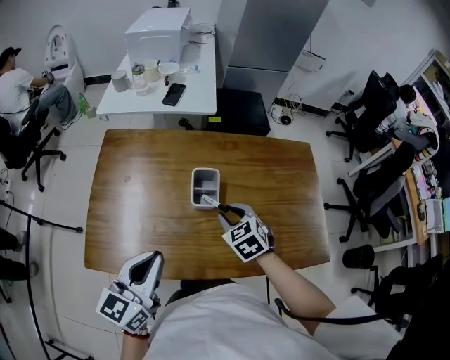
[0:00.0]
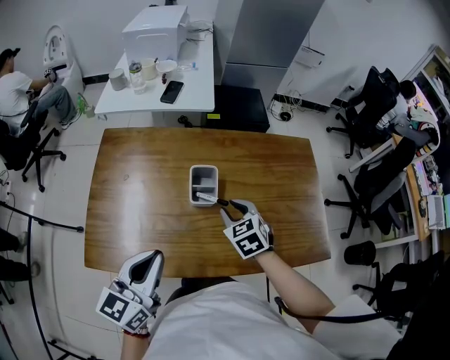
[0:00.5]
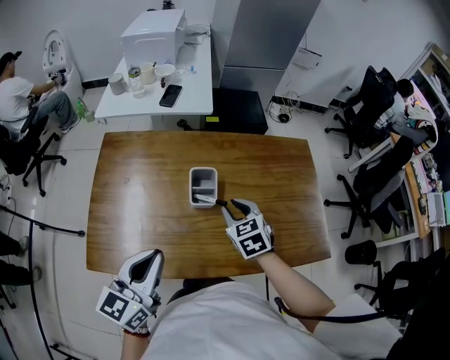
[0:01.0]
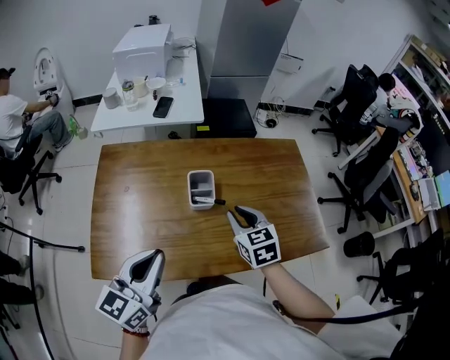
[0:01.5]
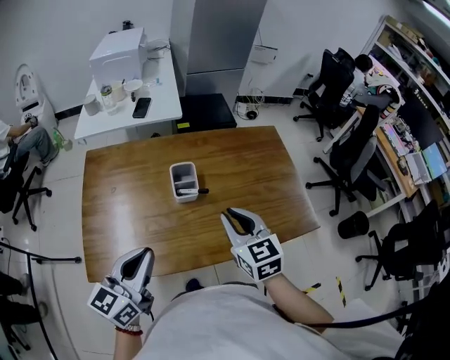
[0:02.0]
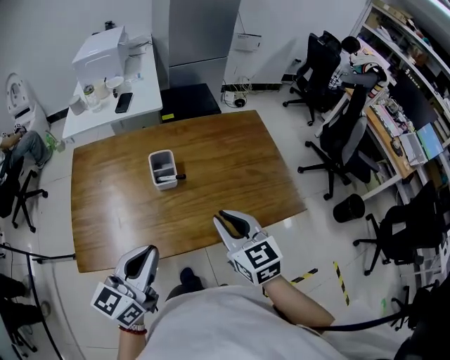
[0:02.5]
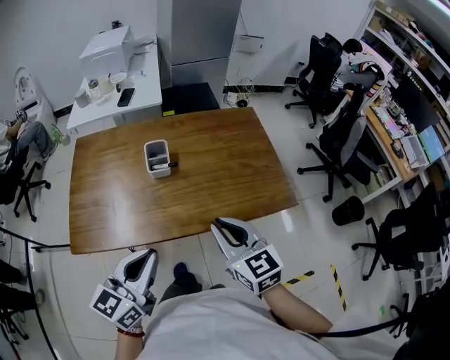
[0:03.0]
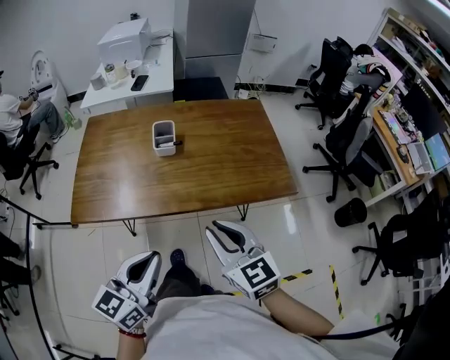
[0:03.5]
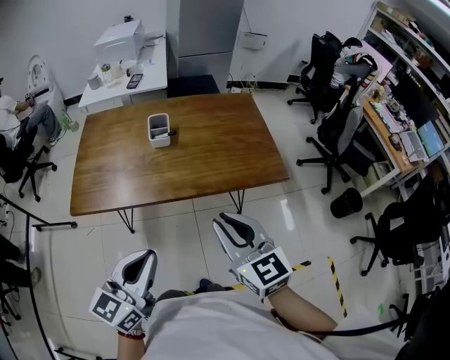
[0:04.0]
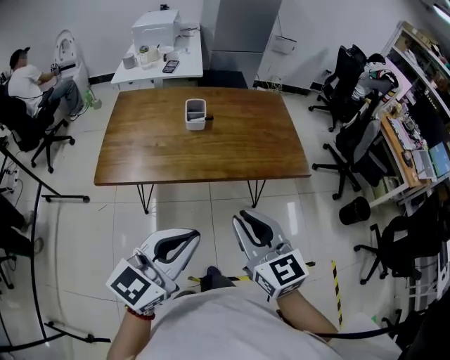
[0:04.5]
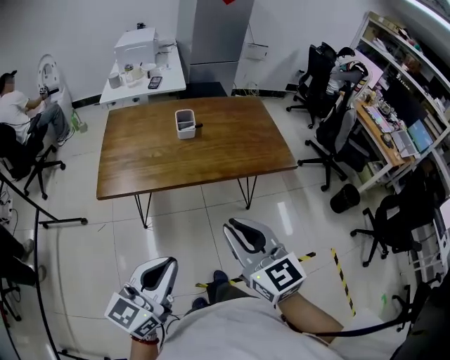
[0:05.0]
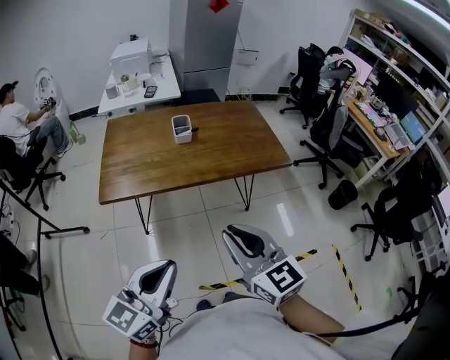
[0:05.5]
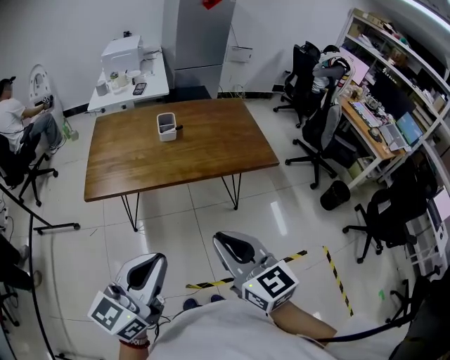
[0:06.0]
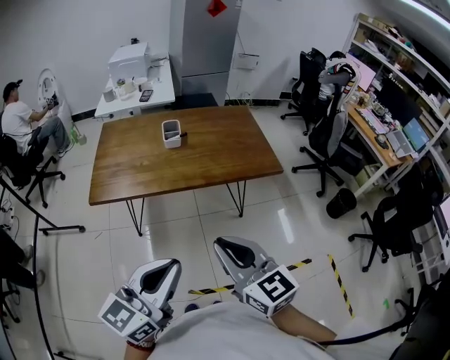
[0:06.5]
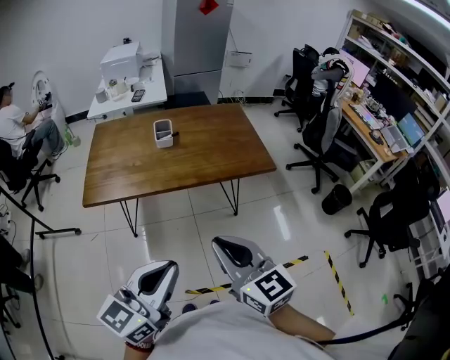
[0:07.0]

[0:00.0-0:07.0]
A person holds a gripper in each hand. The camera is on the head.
0:00.0 to 0:02.0: The right gripper travels upward and backward by about 15 cm, and swivels about 30 degrees.
0:02.0 to 0:03.5: The left gripper is displaced backward and to the right by roughly 25 cm; the right gripper heads backward, covering approximately 25 cm.
0:03.5 to 0:05.0: The right gripper shifts roughly 20 cm backward, upward and to the left, while the left gripper moves backward and to the left, about 20 cm.
0:05.0 to 0:07.0: Both grippers move to the right, about 10 cm.

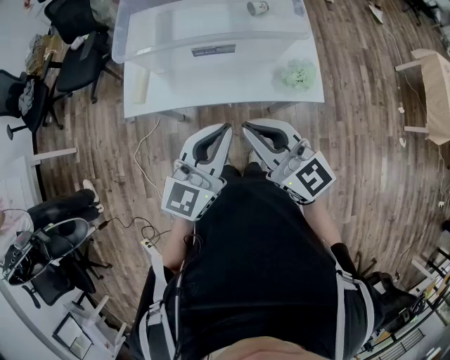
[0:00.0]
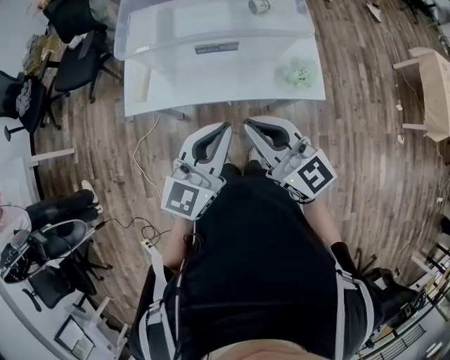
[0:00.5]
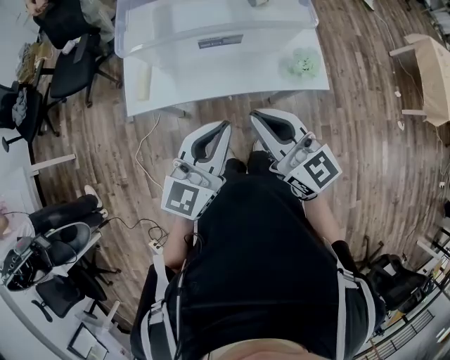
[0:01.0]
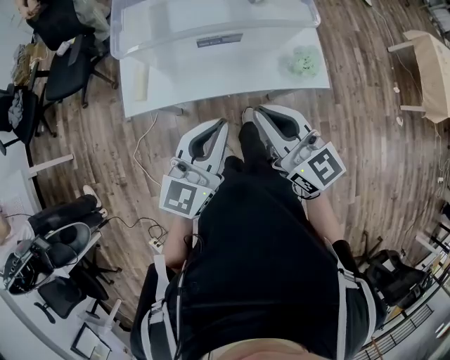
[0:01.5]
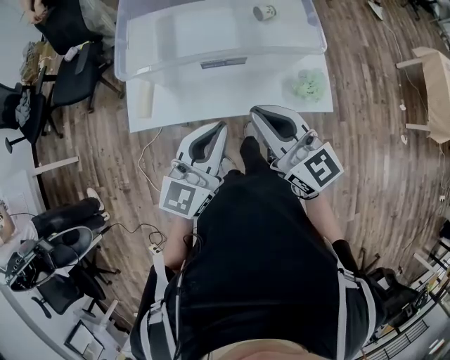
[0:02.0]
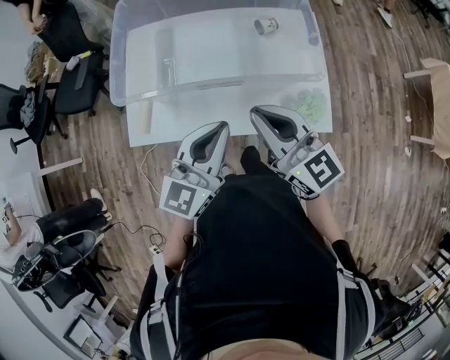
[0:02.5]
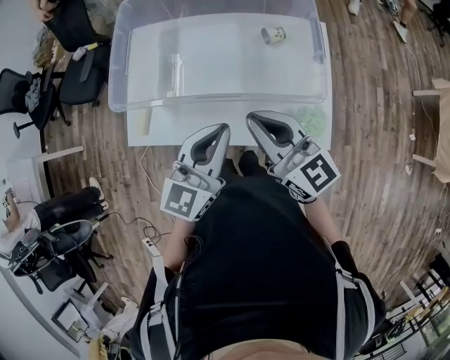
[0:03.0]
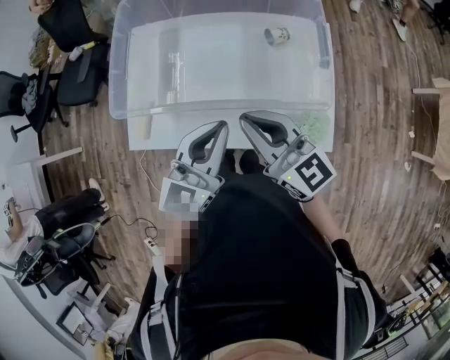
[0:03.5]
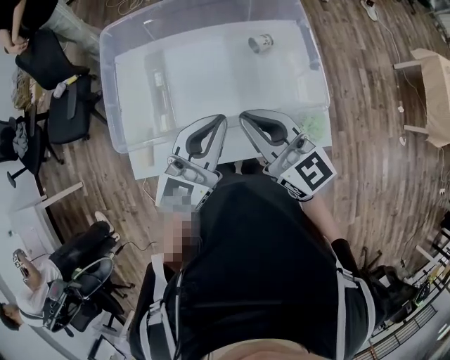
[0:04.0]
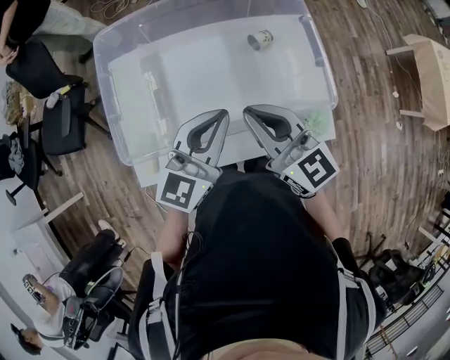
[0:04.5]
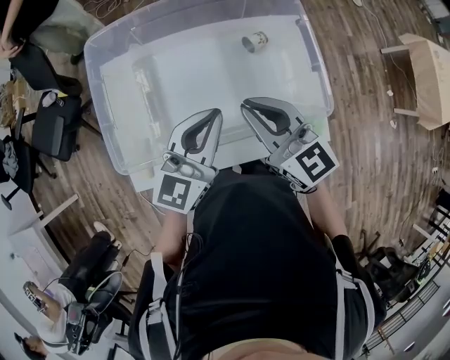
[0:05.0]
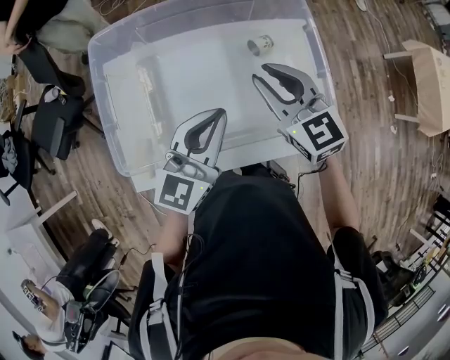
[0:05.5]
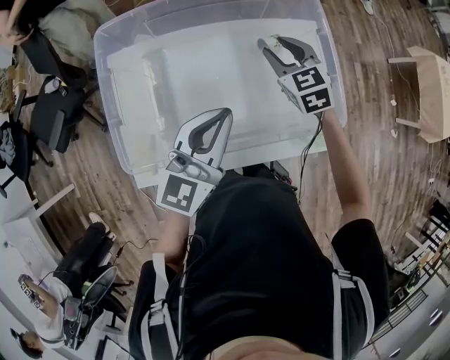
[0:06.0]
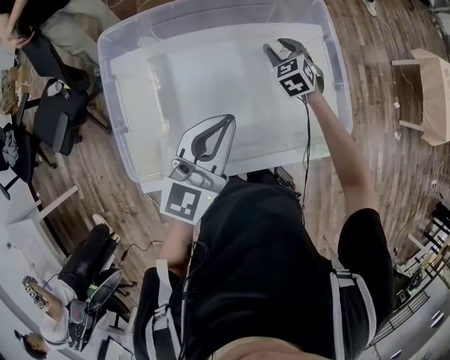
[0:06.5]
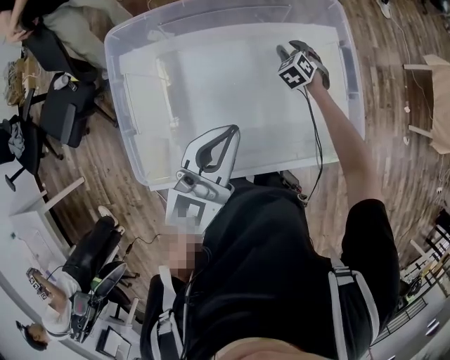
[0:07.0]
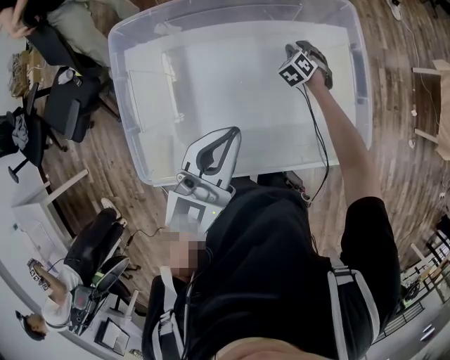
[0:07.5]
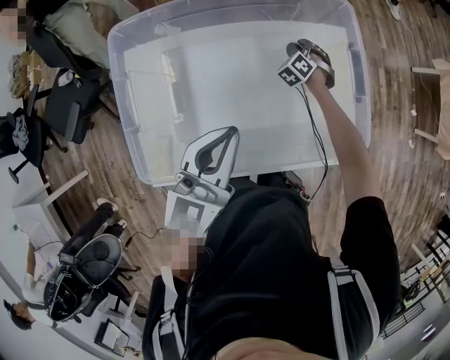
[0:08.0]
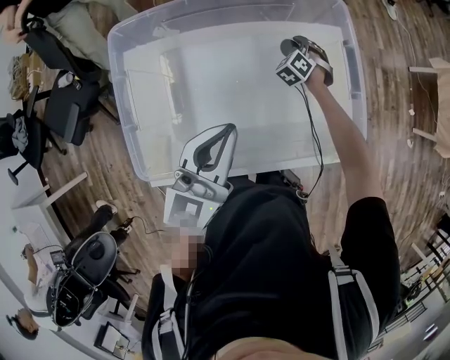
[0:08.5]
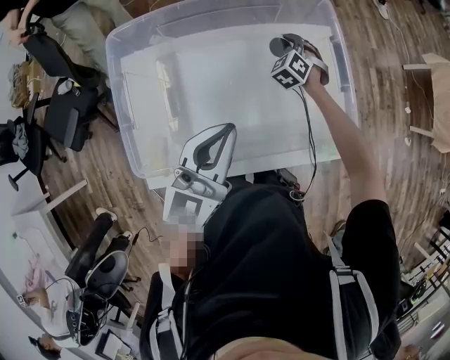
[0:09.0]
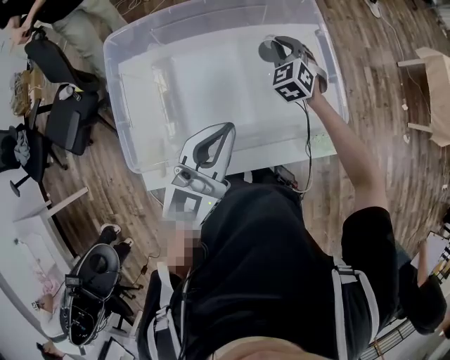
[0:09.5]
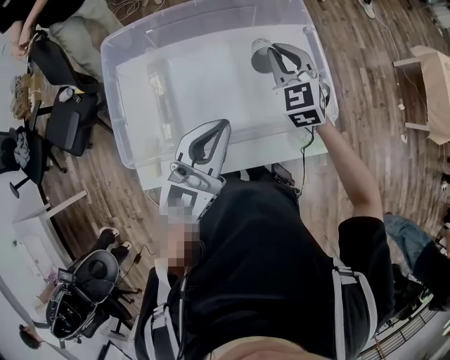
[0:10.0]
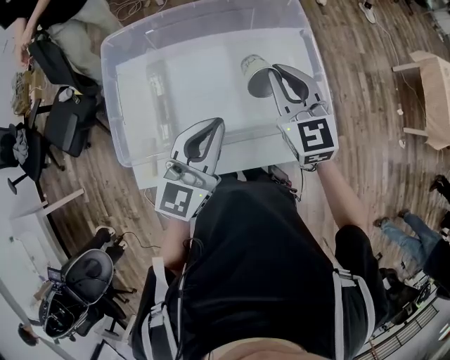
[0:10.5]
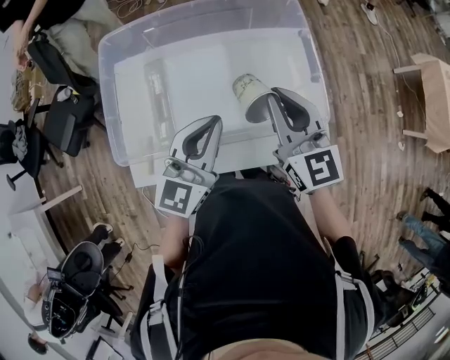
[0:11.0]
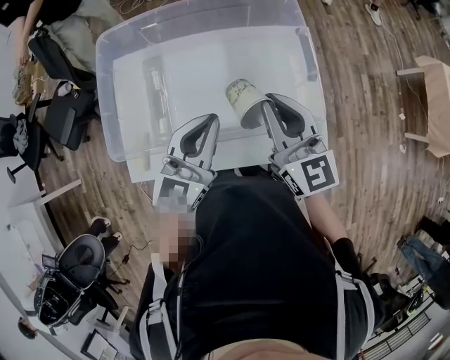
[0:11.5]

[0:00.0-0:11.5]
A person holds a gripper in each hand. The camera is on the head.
0:00.0 to 0:02.0: The two grippers go roughly 10 cm forward.
0:02.0 to 0:04.0: The grippers both shift forward by roughly 20 cm.
0:04.0 to 0:06.0: The right gripper goes approximately 25 cm forward and downward, tips its fingers downward by approximately 30 degrees, and opens its fingers. The left gripper is displaced forward by some 10 cm.
0:06.0 to 0:07.5: The right gripper moves downward and forward, about 25 cm, and swivels about 40 degrees.
0:07.5 to 0:09.5: The right gripper goes roughly 20 cm upward, changes its angle by some 30 degrees, and closes up; the left gripper shifts some 5 cm to the right.
0:09.5 to 0:11.5: The right gripper is displaced backward and upward by some 25 cm, and angles its fingers upward, by roughly 30 degrees.

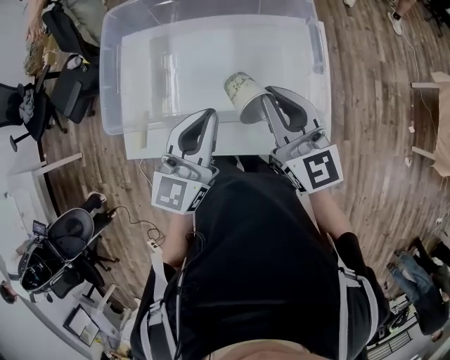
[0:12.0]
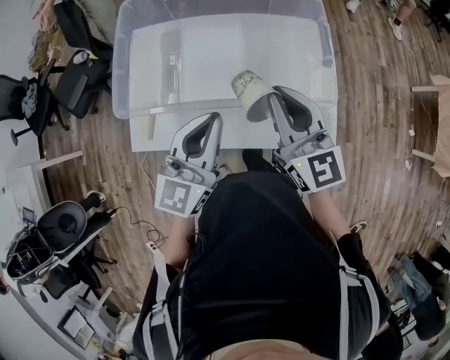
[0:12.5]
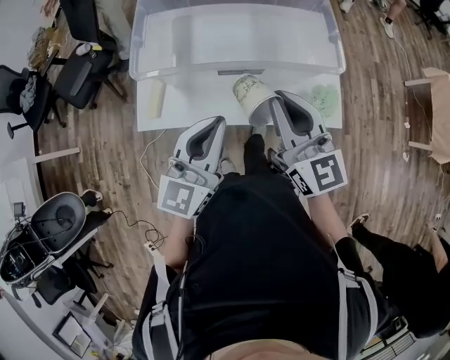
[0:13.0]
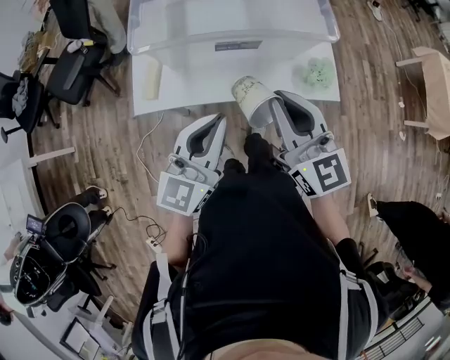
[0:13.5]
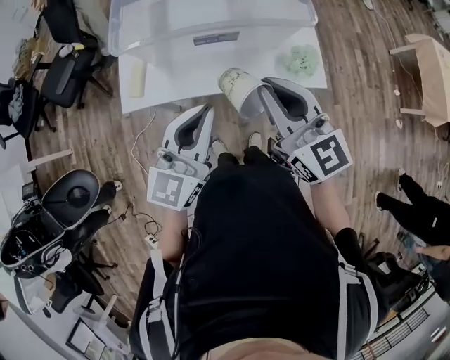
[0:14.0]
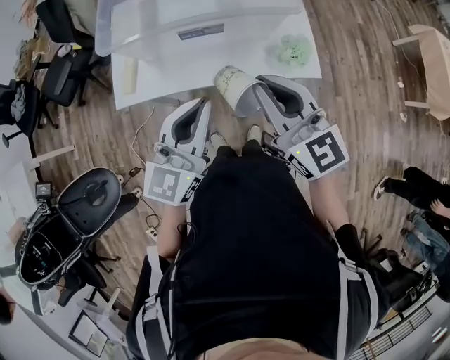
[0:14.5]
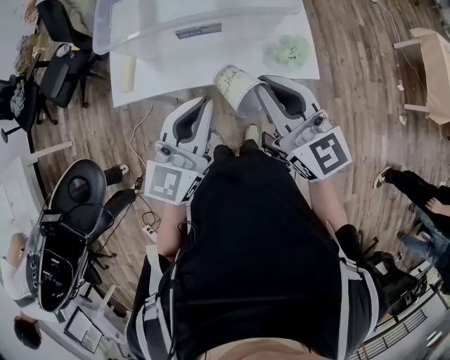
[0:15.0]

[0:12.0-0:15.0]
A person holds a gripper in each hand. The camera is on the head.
0:12.0 to 0:13.5: Both grippers move backward, about 25 cm.
0:13.5 to 0:15.0: The grippers both shift to the right by some 10 cm.

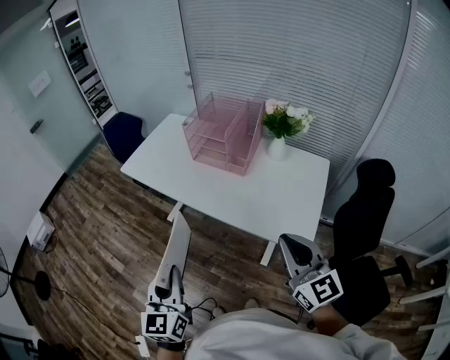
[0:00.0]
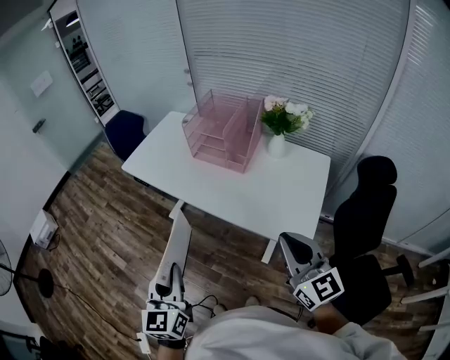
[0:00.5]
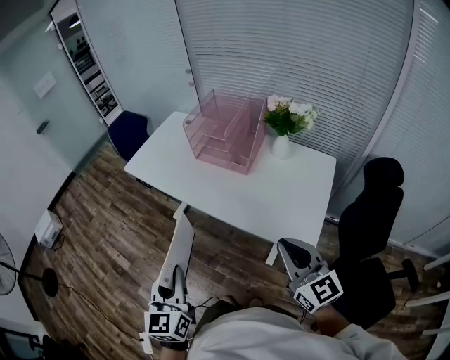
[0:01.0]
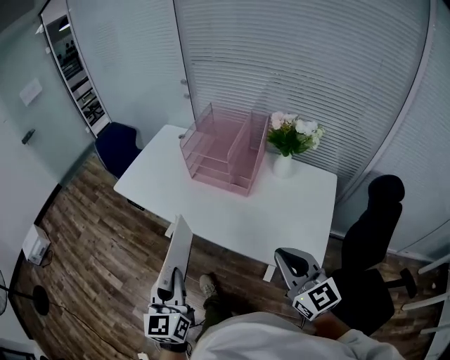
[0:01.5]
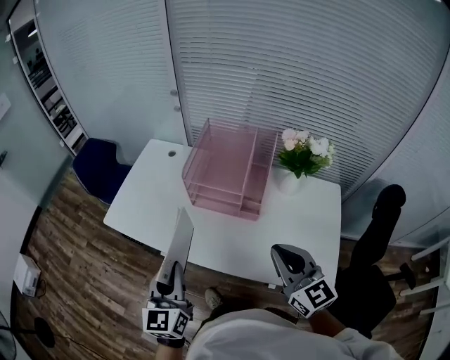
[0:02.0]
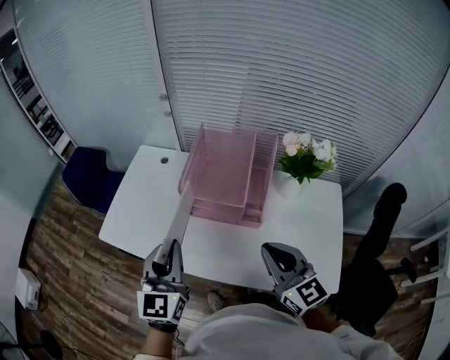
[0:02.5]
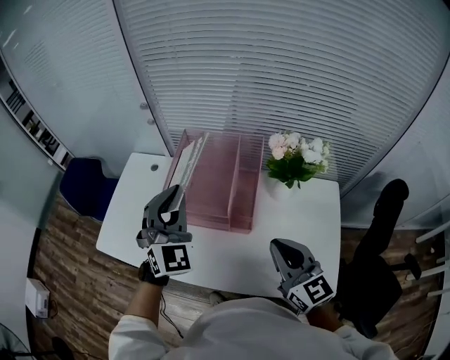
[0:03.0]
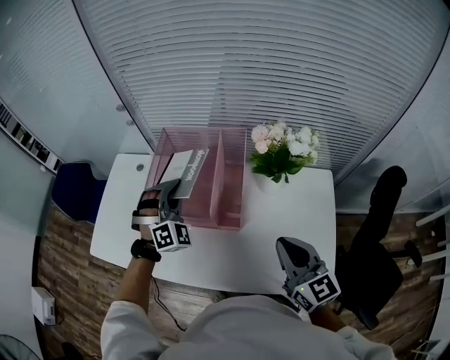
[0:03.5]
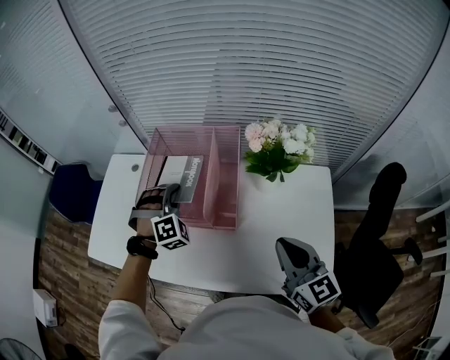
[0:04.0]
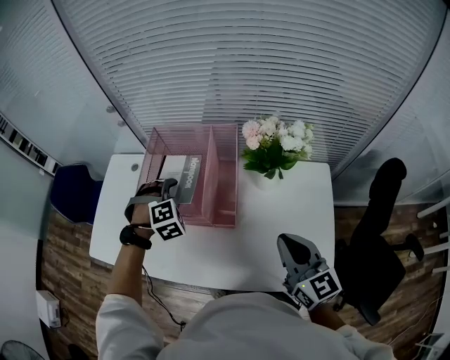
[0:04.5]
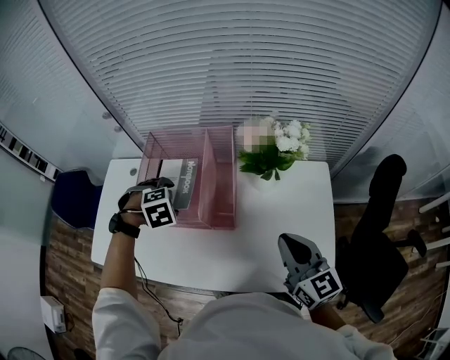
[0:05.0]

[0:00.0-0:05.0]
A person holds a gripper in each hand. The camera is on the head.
0:00.0 to 0:02.5: The two grippers go roughly 40 cm forward. The left gripper swivels about 20 degrees.
0:02.5 to 0:05.0: The left gripper changes place by about 30 cm, points its fingers approximately 70 degrees further downward, and opens its fingers. The right gripper changes place by approximately 20 cm.
